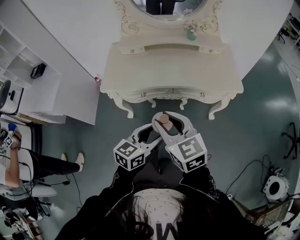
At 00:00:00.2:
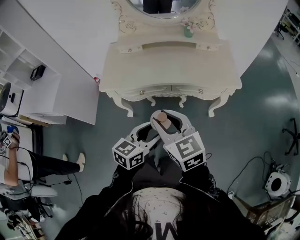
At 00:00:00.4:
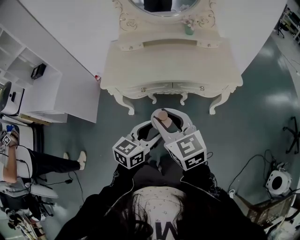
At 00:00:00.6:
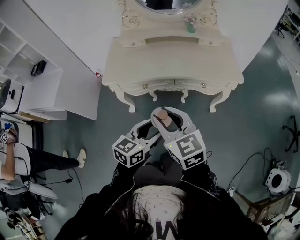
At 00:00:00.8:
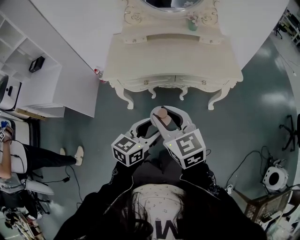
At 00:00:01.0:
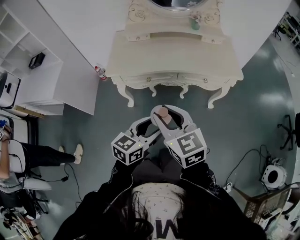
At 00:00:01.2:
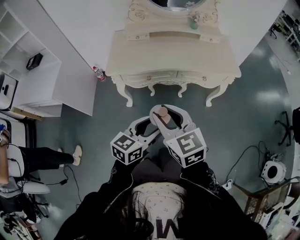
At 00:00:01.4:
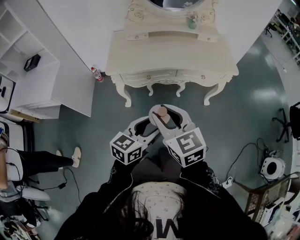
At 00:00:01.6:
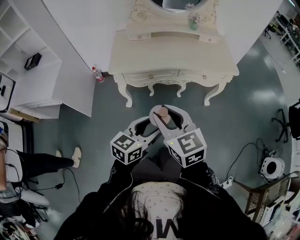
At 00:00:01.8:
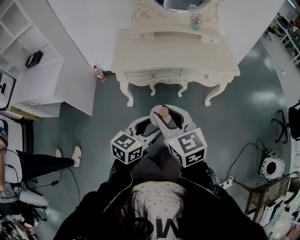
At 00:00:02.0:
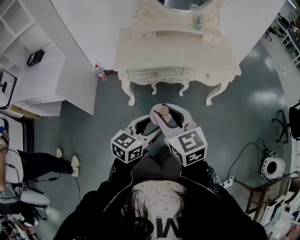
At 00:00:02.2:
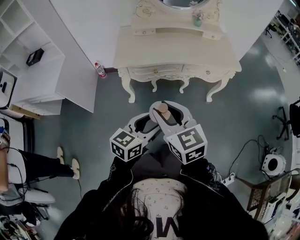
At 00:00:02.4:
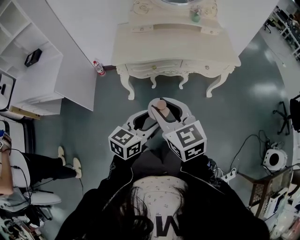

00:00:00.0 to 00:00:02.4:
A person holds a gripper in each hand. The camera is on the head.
00:00:00.0 to 00:00:01.2: Both grippers move backward and to the left, roughly 10 cm.
00:00:01.2 to 00:00:02.4: Both grippers move to the left and backward, some 10 cm.

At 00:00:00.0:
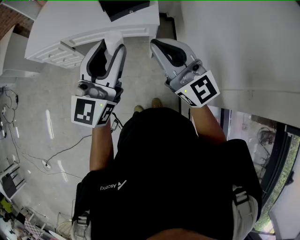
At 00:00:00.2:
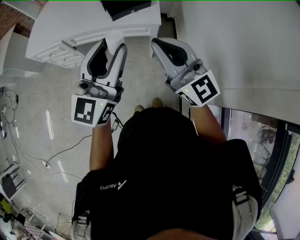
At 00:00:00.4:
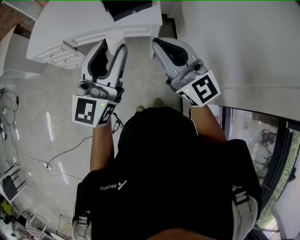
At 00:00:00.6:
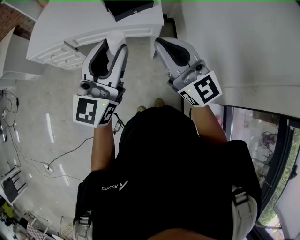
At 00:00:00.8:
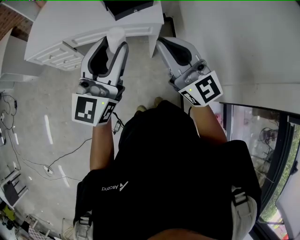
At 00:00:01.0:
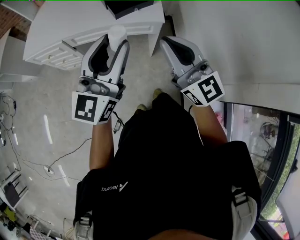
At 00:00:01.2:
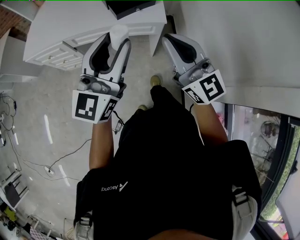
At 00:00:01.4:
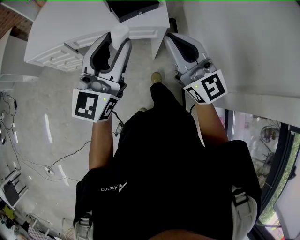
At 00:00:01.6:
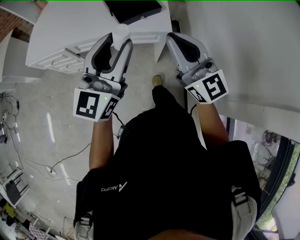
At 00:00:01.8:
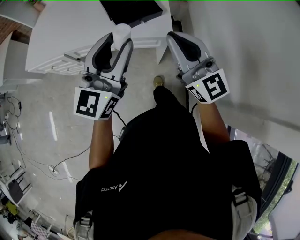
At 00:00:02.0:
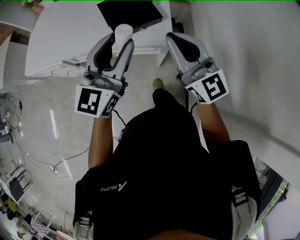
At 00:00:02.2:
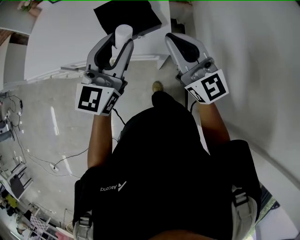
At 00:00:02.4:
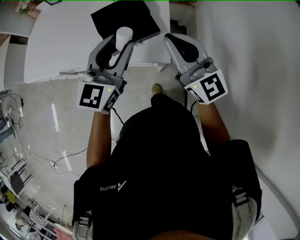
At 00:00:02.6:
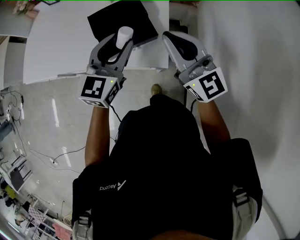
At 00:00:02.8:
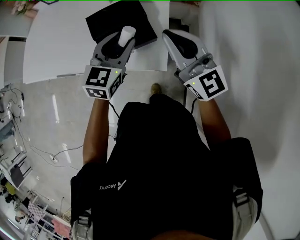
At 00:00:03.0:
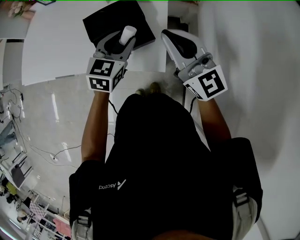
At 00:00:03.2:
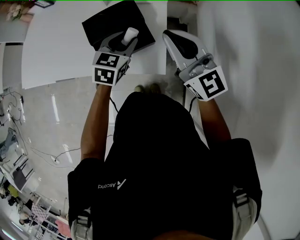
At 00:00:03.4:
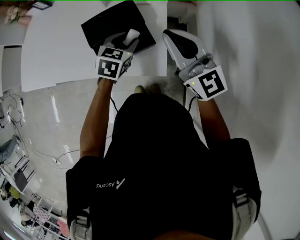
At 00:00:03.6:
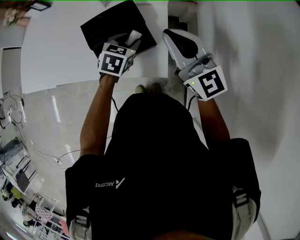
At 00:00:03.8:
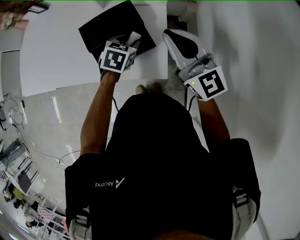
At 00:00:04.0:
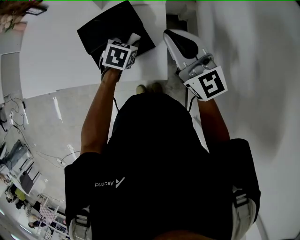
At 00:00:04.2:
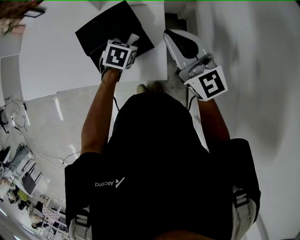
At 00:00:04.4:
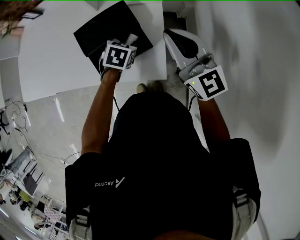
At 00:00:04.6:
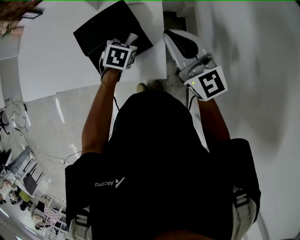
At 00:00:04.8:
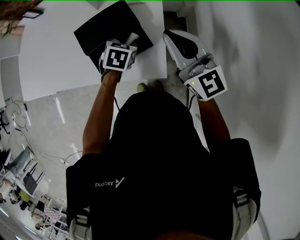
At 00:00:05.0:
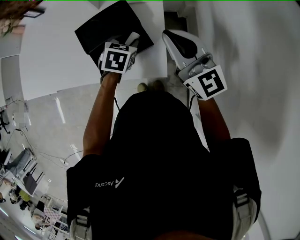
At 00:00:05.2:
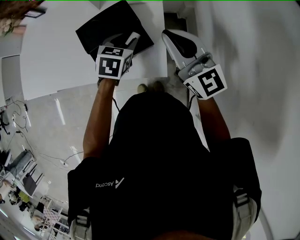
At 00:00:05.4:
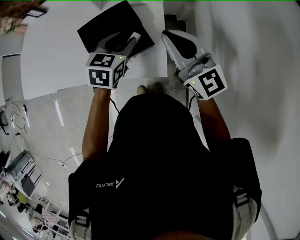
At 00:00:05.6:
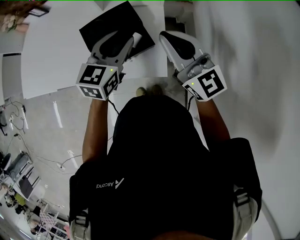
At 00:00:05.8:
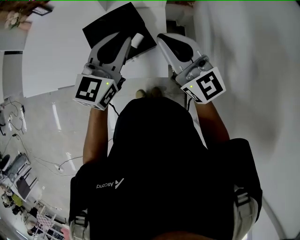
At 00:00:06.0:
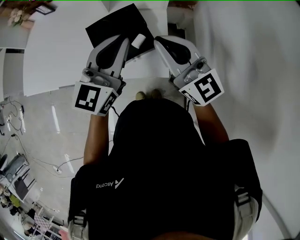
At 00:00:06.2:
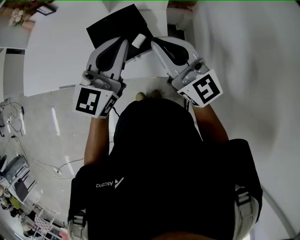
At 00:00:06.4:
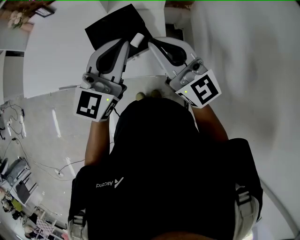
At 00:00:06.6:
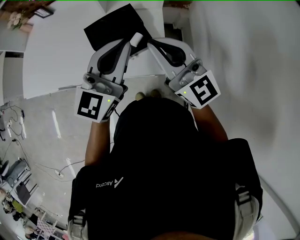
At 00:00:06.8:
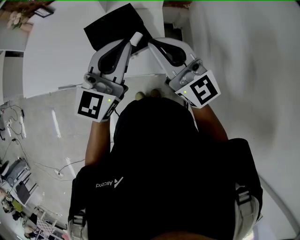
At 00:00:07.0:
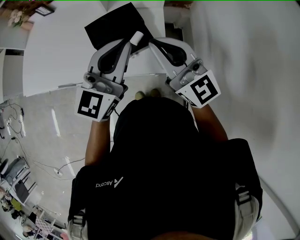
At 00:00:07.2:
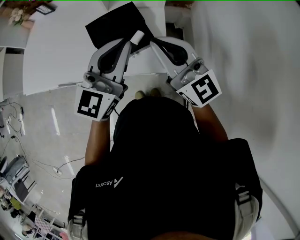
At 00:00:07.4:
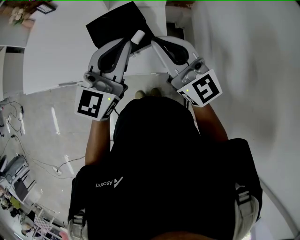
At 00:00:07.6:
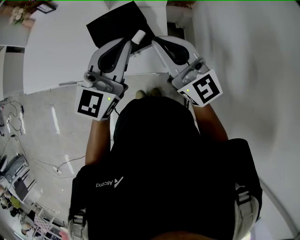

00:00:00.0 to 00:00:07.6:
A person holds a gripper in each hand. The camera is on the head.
00:00:00.0 to 00:00:01.6: Both grippers travel together forward, roughly 10 cm.
00:00:01.6 to 00:00:03.0: The left gripper heads forward and downward, covering roughly 40 cm, and angles its fingers downward, by some 40 degrees; the right gripper travels forward by about 30 cm.
00:00:03.0 to 00:00:04.6: The right gripper travels forward by approximately 5 cm. Meanwhile the left gripper travels downward by some 15 cm, and points its fingers roughly 30 degrees further downward.
00:00:04.6 to 00:00:06.0: The left gripper heads upward, covering roughly 30 cm, points its fingers about 60 degrees further upward, and closes its fingers. The right gripper goes about 10 cm backward, upward and to the left.
00:00:06.0 to 00:00:07.6: There are only small adjustments of the grippers.
